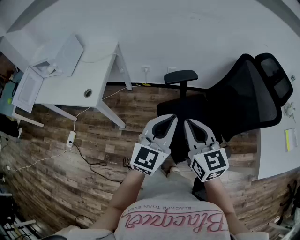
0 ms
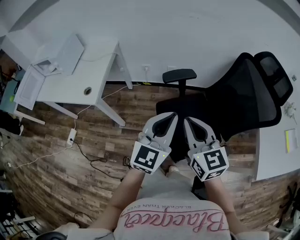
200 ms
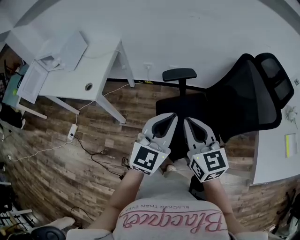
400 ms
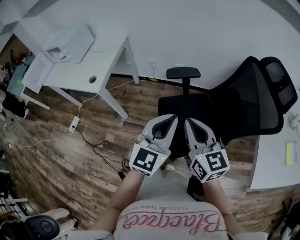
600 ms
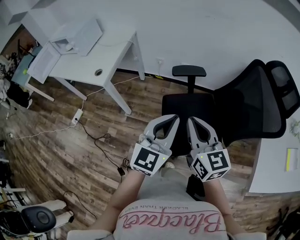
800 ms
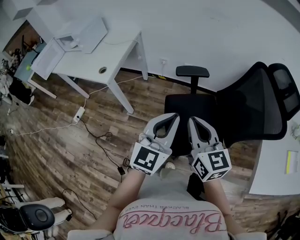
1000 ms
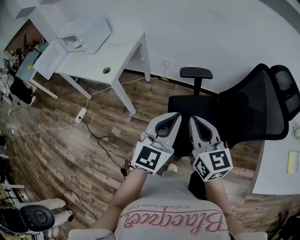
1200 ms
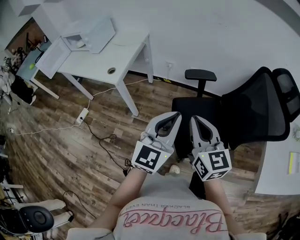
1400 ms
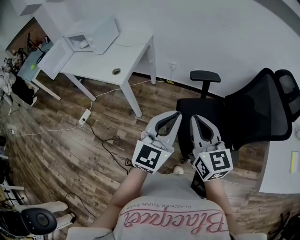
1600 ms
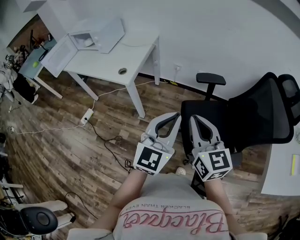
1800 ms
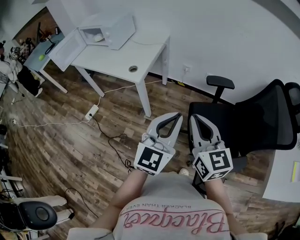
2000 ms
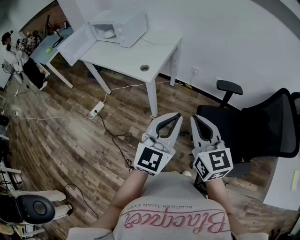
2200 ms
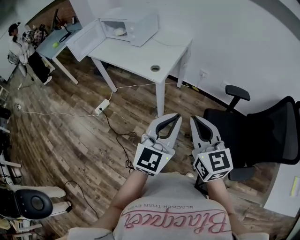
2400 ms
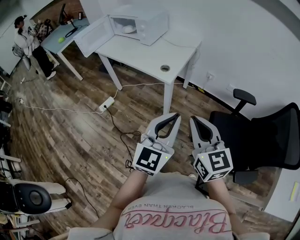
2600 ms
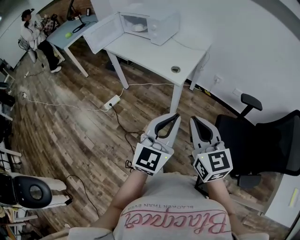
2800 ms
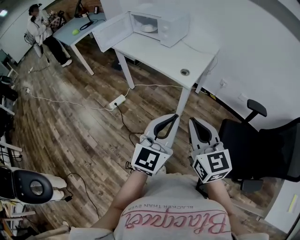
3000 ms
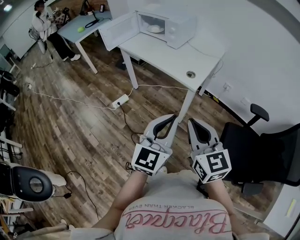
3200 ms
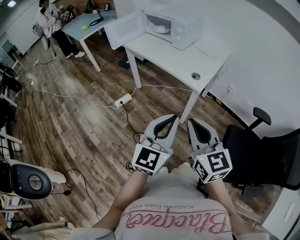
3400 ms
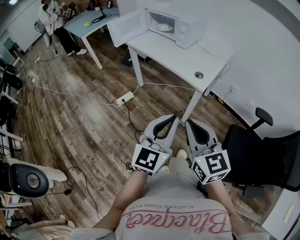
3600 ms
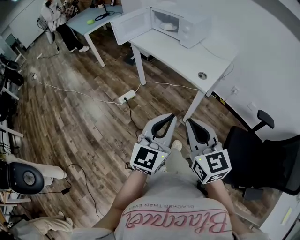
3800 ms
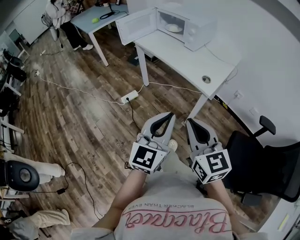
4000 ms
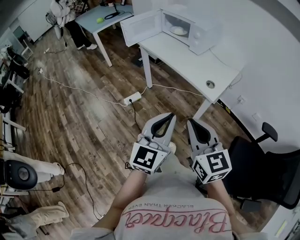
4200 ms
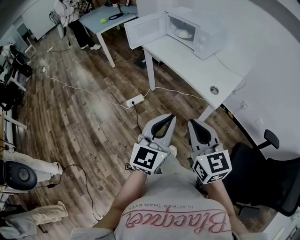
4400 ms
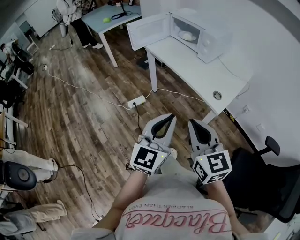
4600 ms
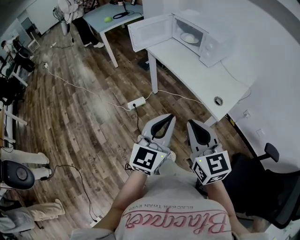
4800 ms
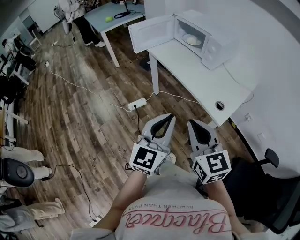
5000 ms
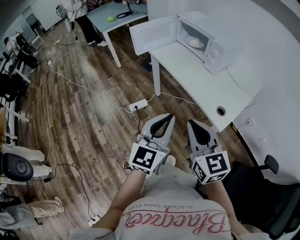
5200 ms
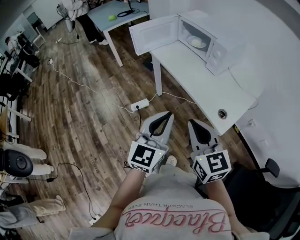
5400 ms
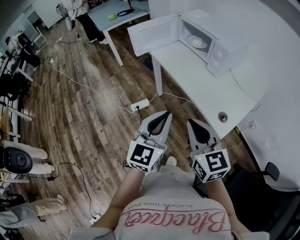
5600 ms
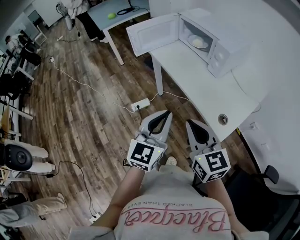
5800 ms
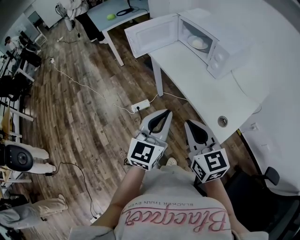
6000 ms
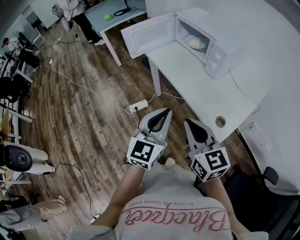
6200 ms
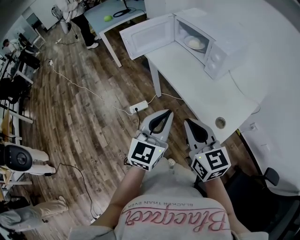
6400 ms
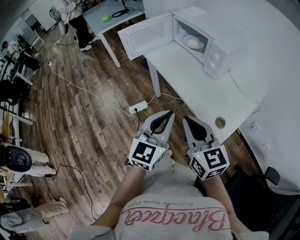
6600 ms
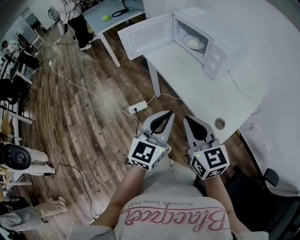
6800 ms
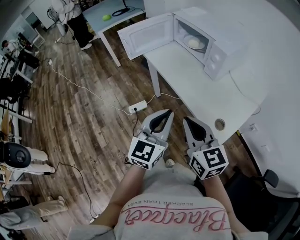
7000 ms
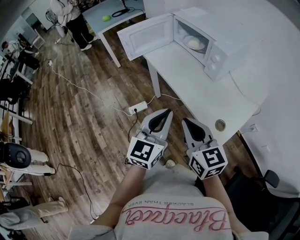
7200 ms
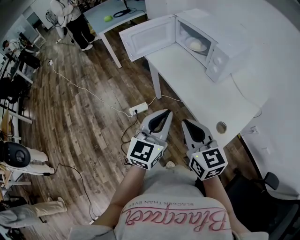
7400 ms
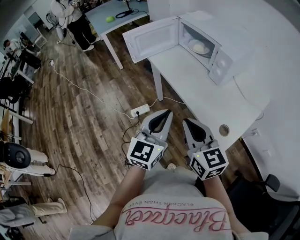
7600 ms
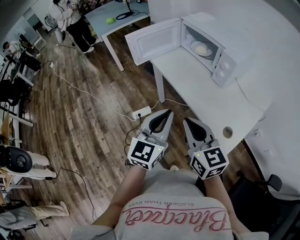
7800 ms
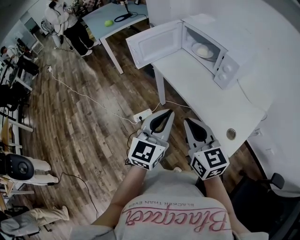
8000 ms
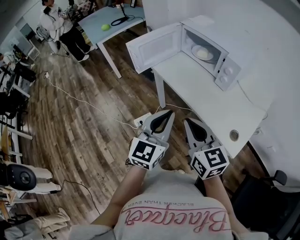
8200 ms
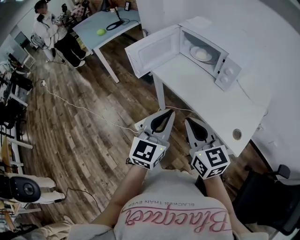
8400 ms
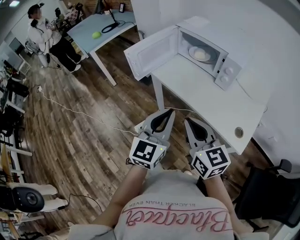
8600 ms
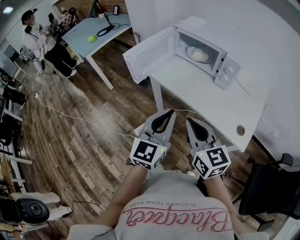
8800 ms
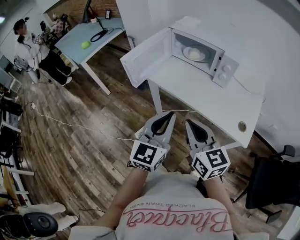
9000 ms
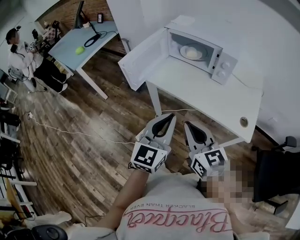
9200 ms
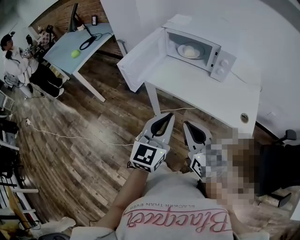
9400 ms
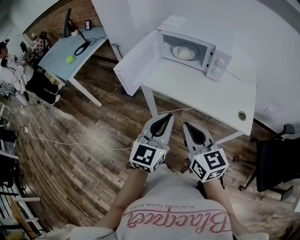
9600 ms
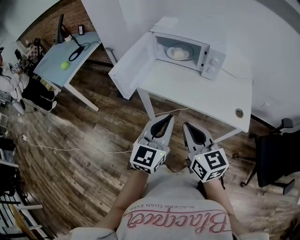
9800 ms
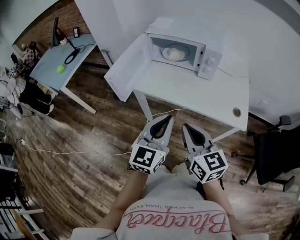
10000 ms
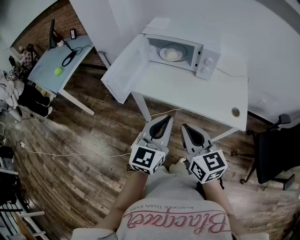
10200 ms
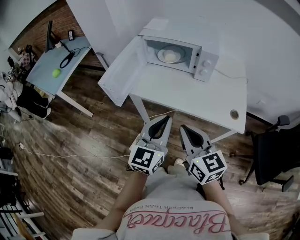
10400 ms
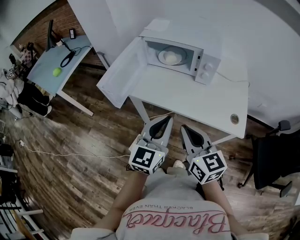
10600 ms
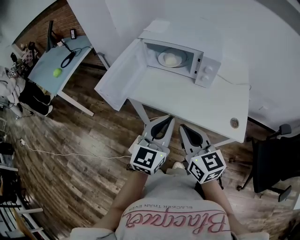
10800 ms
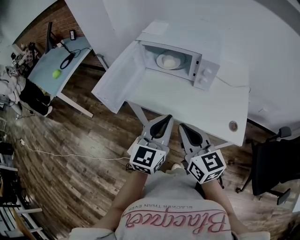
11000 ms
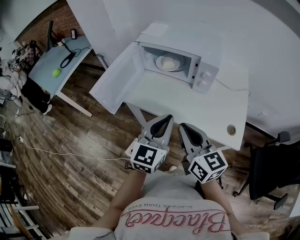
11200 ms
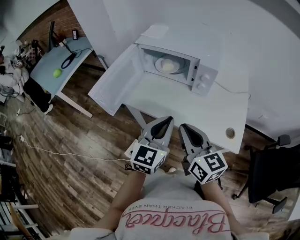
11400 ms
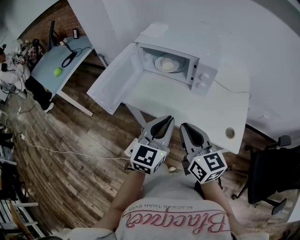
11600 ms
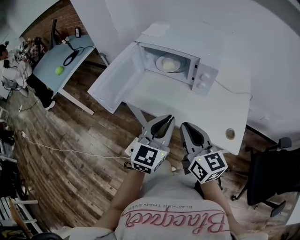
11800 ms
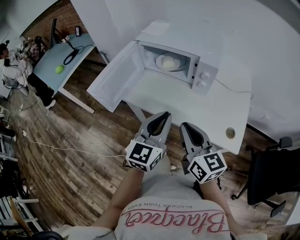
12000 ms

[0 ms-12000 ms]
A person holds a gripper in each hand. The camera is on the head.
0 ms to 1600 ms: The right gripper goes some 5 cm backward; the left gripper goes some 10 cm backward and to the left.
1600 ms to 3000 ms: Both grippers move to the left, some 35 cm. The right gripper rotates approximately 20 degrees, while the left gripper turns by some 20 degrees.
3000 ms to 4400 ms: The grippers both shift to the left and forward by some 15 cm.
4400 ms to 6000 ms: The grippers both shift forward by roughly 20 cm.
6000 ms to 7600 ms: The left gripper shifts by about 5 cm. Meanwhile the right gripper heads forward, covering some 5 cm.
7600 ms to 9000 ms: The two grippers go roughly 15 cm to the left and forward. The right gripper swivels approximately 20 degrees.
9000 ms to 10400 ms: The grippers make only small movements.
10400 ms to 12000 ms: The two grippers go roughly 10 cm forward and to the right.

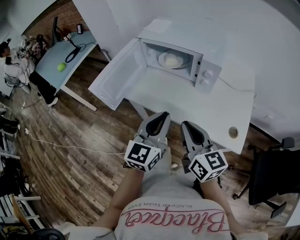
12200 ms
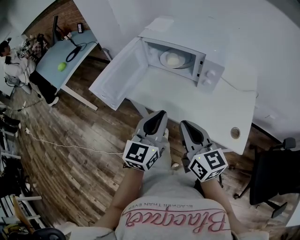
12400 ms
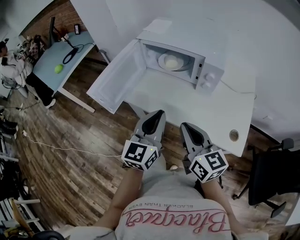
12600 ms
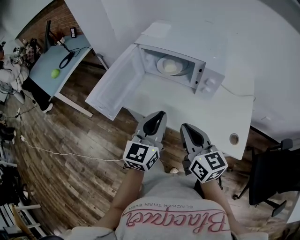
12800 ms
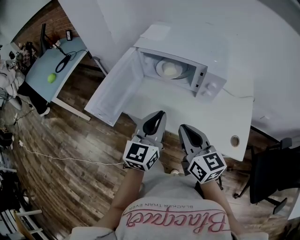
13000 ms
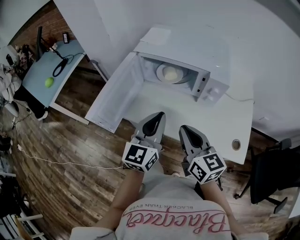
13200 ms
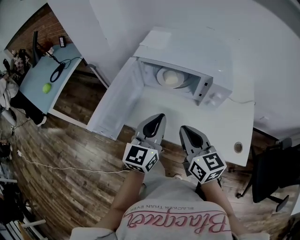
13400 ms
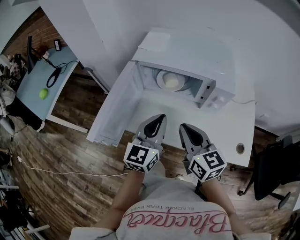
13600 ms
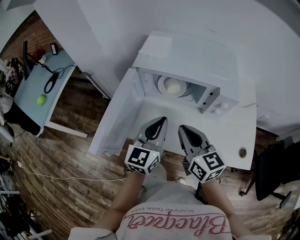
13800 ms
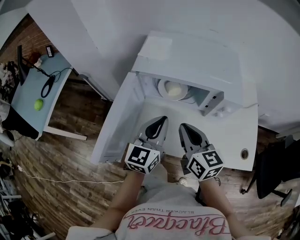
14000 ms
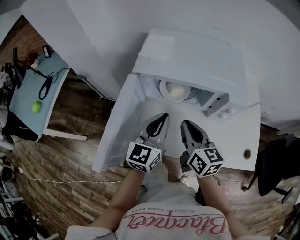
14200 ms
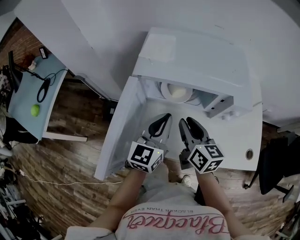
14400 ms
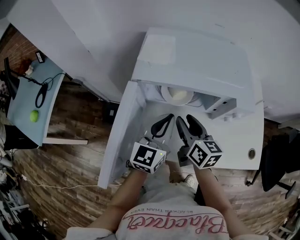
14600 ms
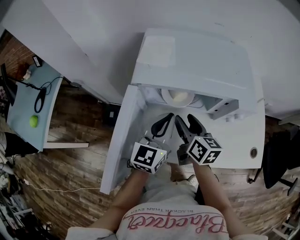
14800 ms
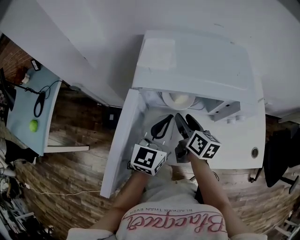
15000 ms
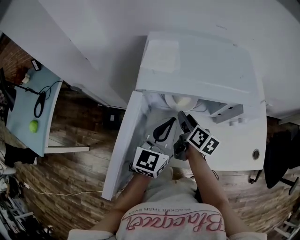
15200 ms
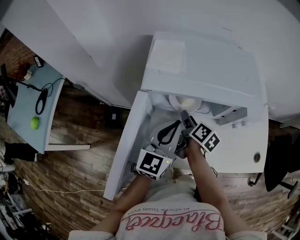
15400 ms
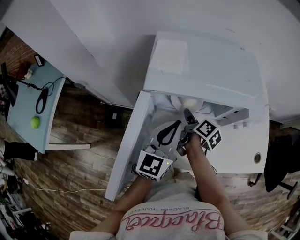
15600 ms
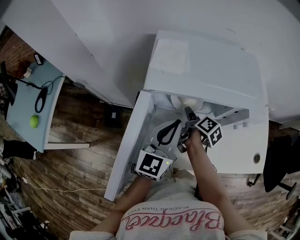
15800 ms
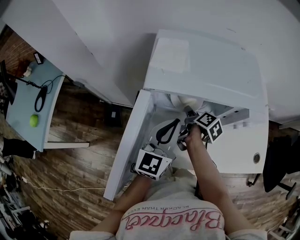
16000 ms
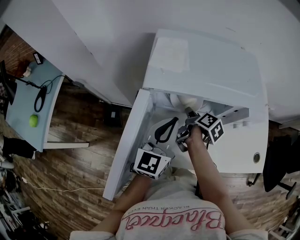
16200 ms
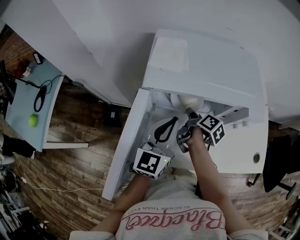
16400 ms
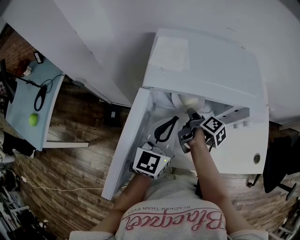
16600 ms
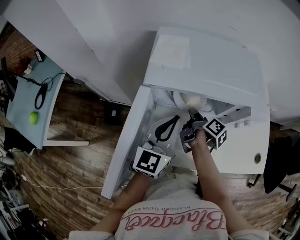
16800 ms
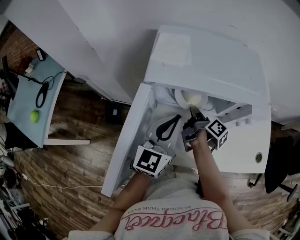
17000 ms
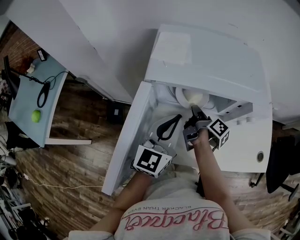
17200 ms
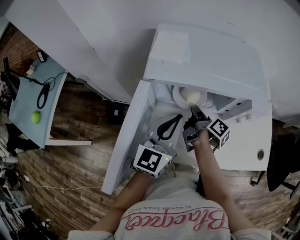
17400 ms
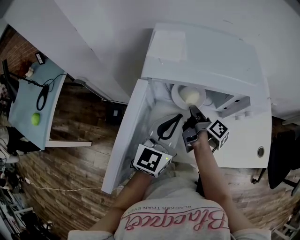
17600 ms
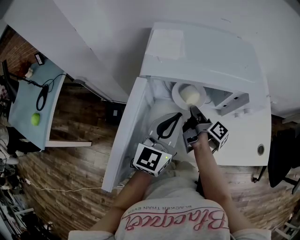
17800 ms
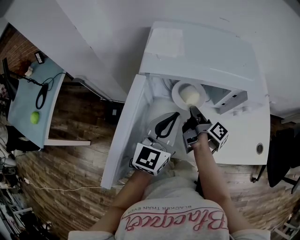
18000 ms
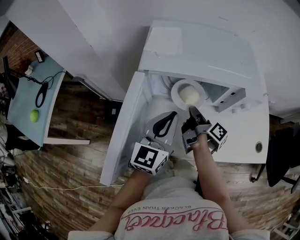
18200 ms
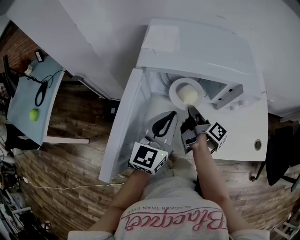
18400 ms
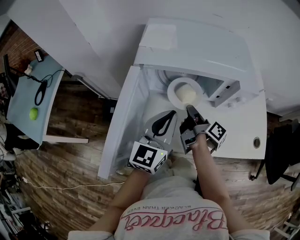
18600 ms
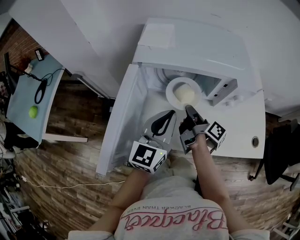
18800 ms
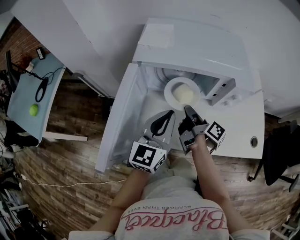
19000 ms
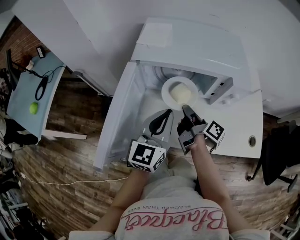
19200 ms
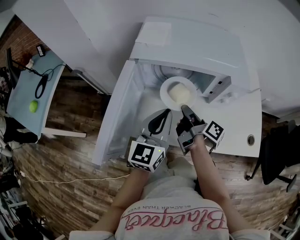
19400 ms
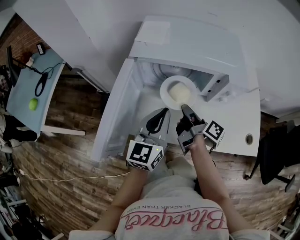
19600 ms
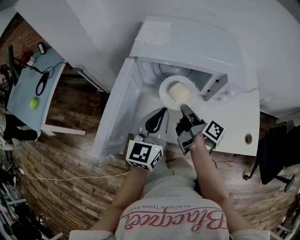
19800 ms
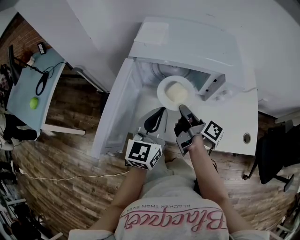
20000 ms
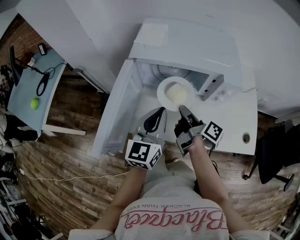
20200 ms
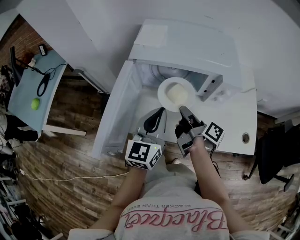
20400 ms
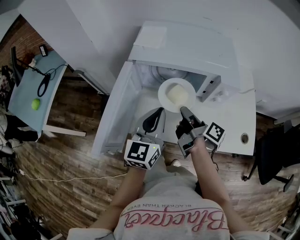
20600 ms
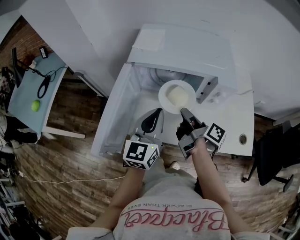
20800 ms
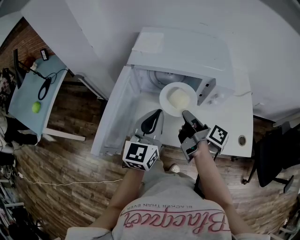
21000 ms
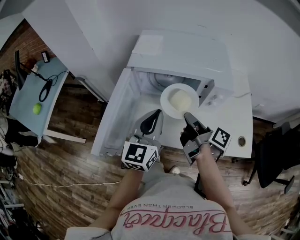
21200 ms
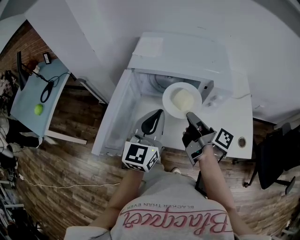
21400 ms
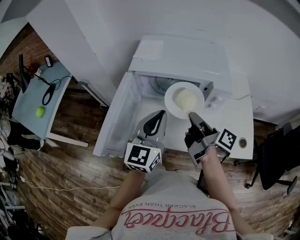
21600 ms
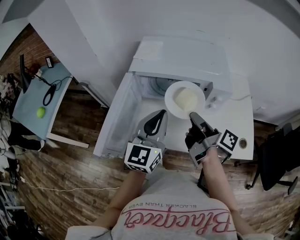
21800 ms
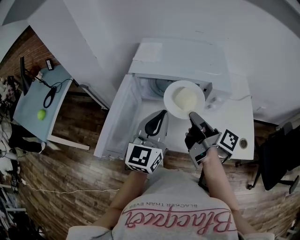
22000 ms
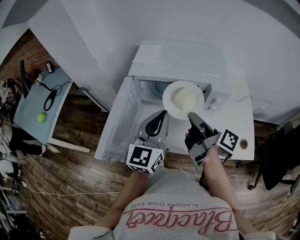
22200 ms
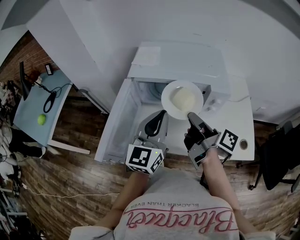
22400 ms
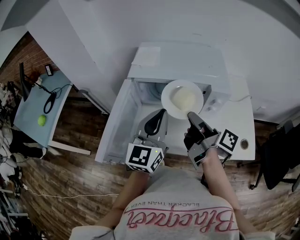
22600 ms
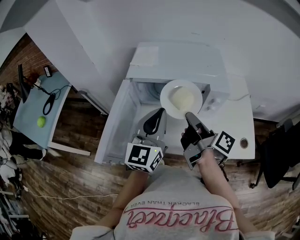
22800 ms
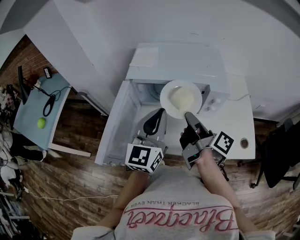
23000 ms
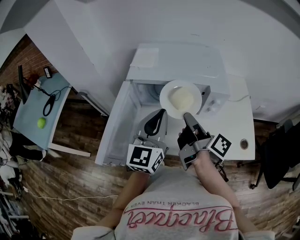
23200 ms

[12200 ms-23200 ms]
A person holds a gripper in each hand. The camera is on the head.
12200 ms to 13800 ms: Both grippers travel together forward and to the left, approximately 20 cm.
13800 ms to 15400 ms: The left gripper travels forward by about 10 cm, while the right gripper goes roughly 25 cm forward and downward, twists roughly 50 degrees clockwise, seen from behind, and opens up.
15400 ms to 17000 ms: The right gripper swivels about 30 degrees, and closes up.
17000 ms to 18400 ms: The right gripper travels backward by about 5 cm.
18400 ms to 20000 ms: The right gripper goes about 10 cm backward and upward.
20000 ms to 21600 ms: The left gripper is displaced upward by approximately 5 cm. Meanwhile the right gripper heads upward and to the right, covering approximately 10 cm.
21600 ms to 23200 ms: The grippers move only a little.

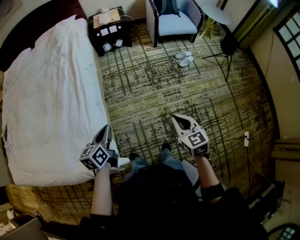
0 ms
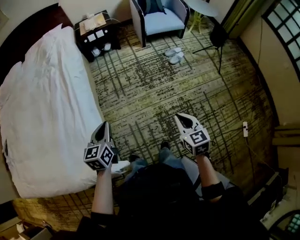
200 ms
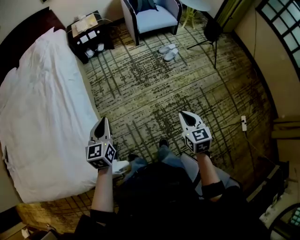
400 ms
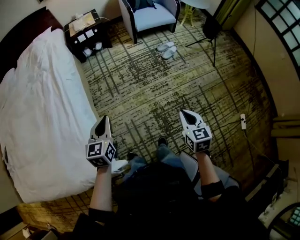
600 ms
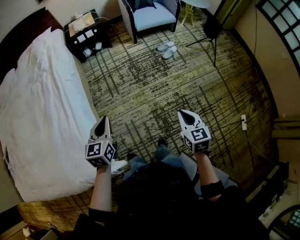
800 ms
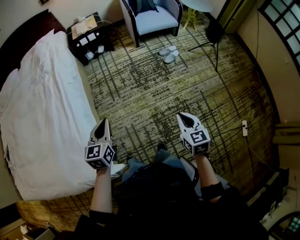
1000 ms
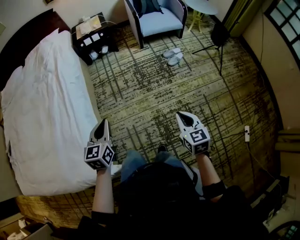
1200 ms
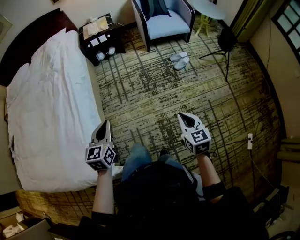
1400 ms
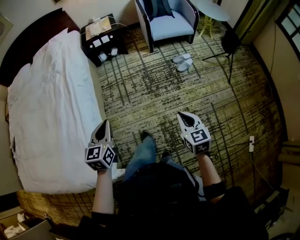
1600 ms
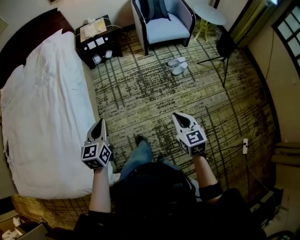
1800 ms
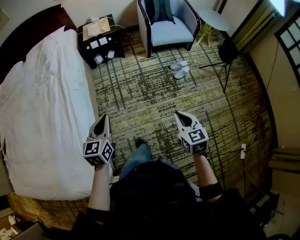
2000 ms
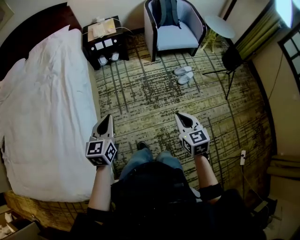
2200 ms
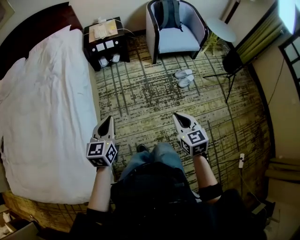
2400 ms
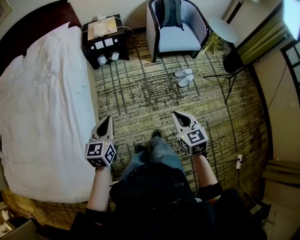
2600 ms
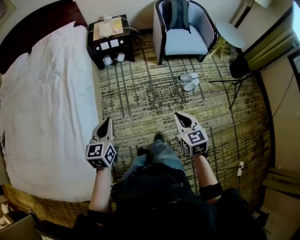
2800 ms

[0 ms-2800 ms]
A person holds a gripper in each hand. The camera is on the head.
0 ms to 1400 ms: The two grippers go roughly 20 cm to the right and forward. The left gripper turns by approximately 20 degrees.
1400 ms to 2800 ms: The two grippers go some 25 cm forward.
